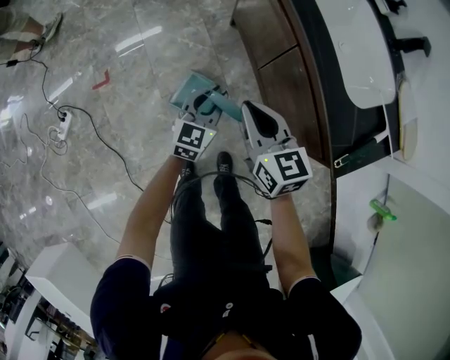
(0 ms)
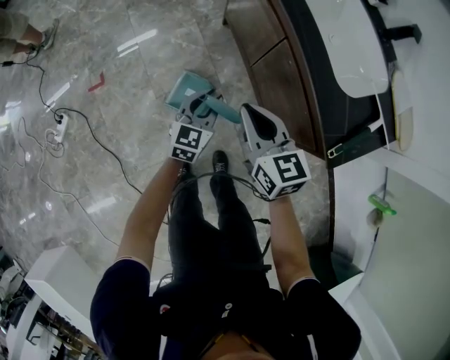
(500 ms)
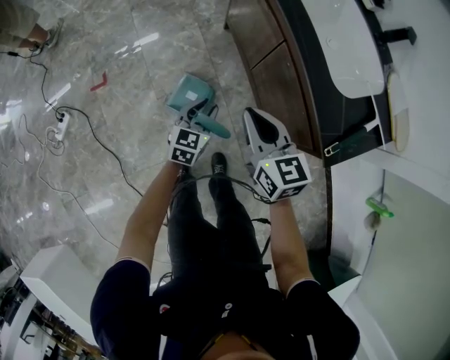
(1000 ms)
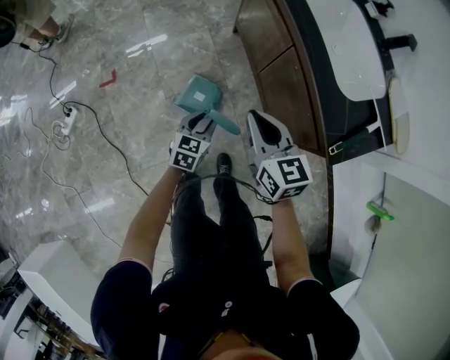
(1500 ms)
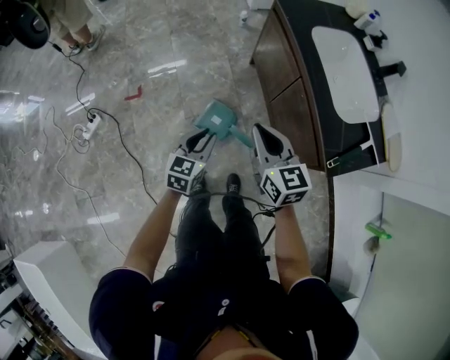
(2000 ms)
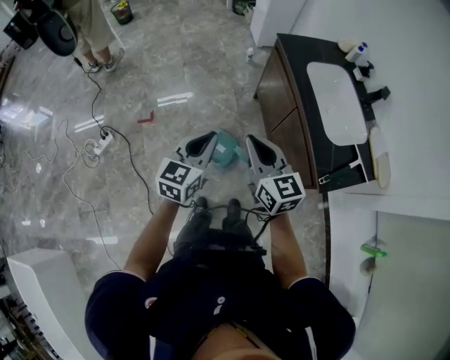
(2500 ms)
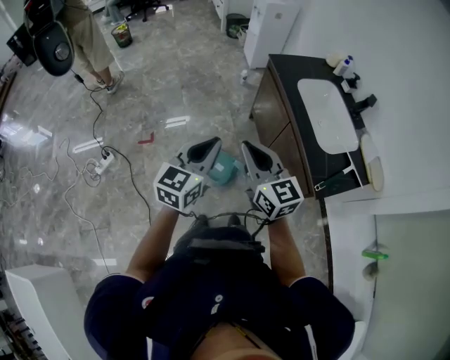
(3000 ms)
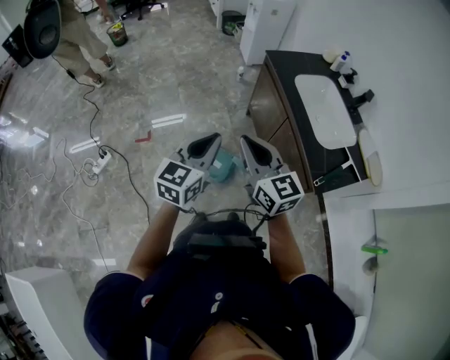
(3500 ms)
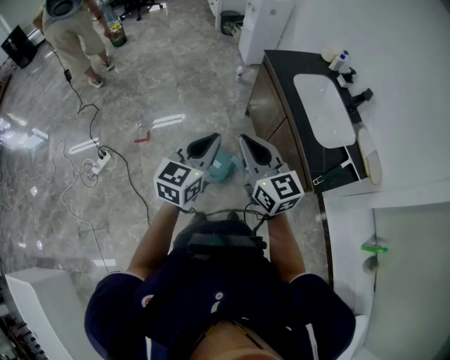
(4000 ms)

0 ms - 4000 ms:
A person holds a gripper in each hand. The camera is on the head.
0 ms - 2000 ms: The left gripper shifts some 20 cm backward, upward and to the left. Meanwhile the right gripper is displaced upward and backward by about 15 cm.
2000 ms - 4000 ms: The right gripper shifts approximately 15 cm upward; the left gripper heads upward, covering approximately 25 cm.

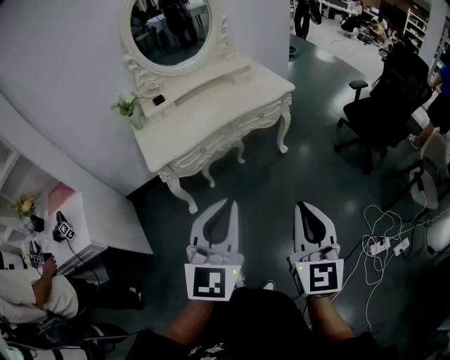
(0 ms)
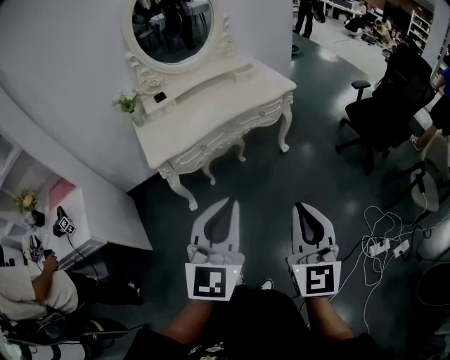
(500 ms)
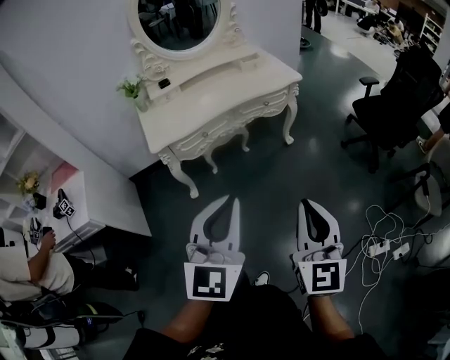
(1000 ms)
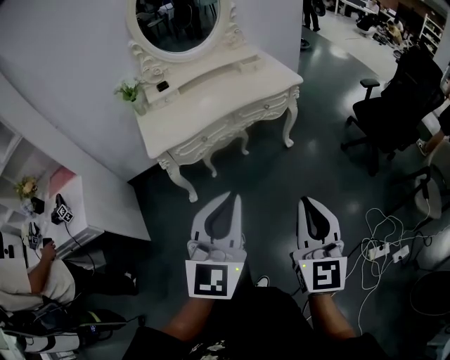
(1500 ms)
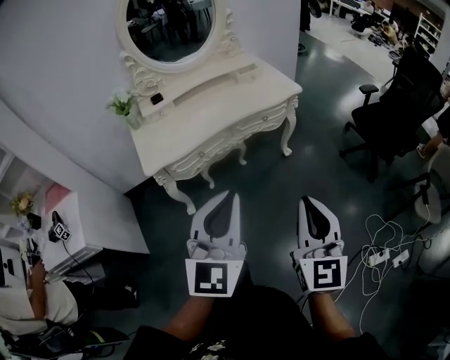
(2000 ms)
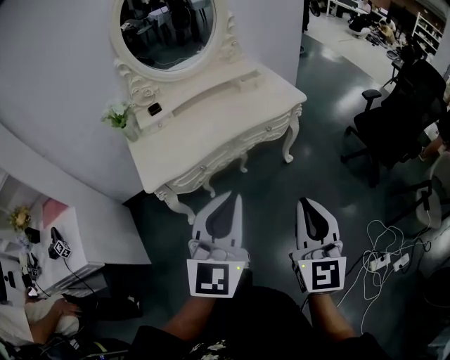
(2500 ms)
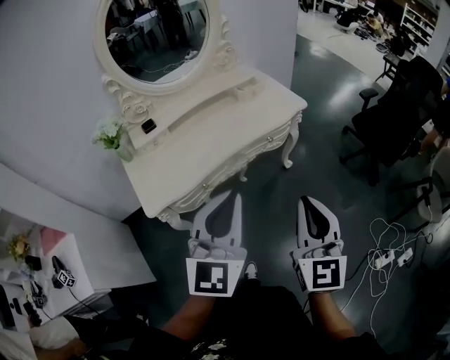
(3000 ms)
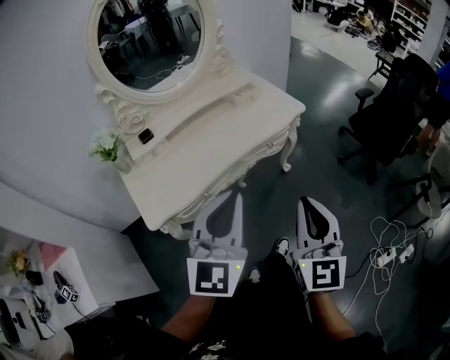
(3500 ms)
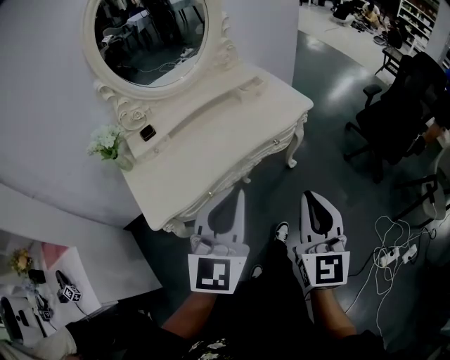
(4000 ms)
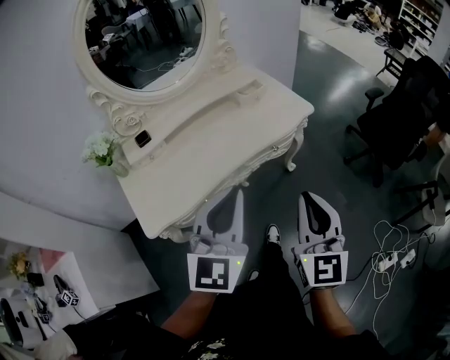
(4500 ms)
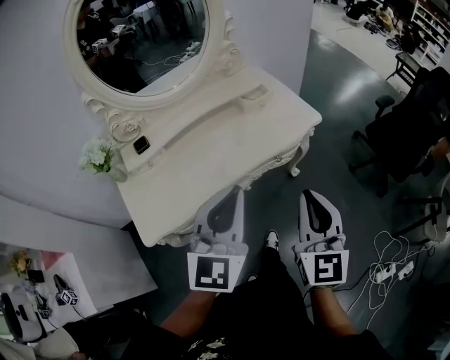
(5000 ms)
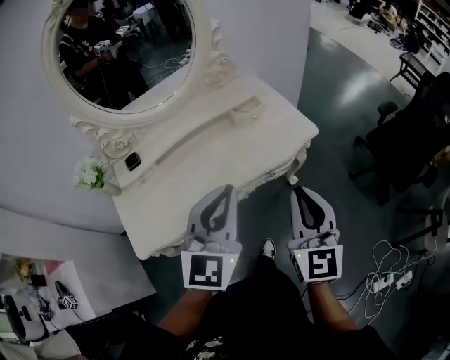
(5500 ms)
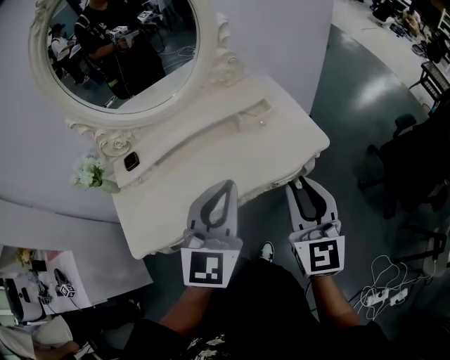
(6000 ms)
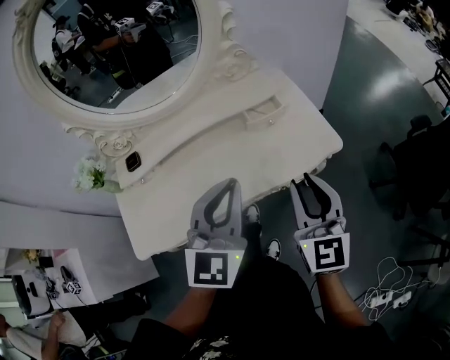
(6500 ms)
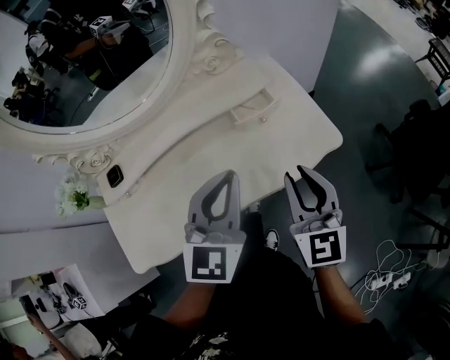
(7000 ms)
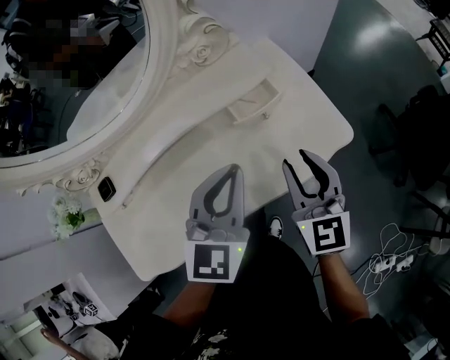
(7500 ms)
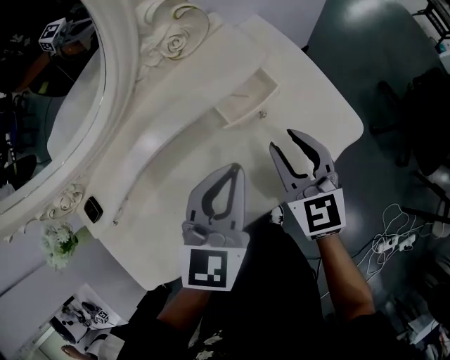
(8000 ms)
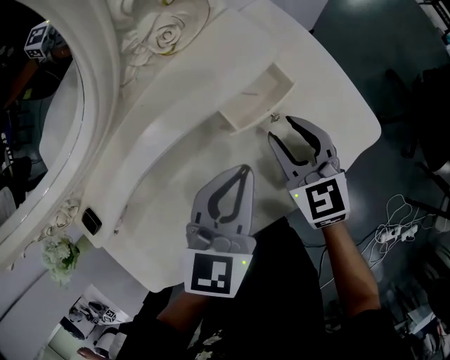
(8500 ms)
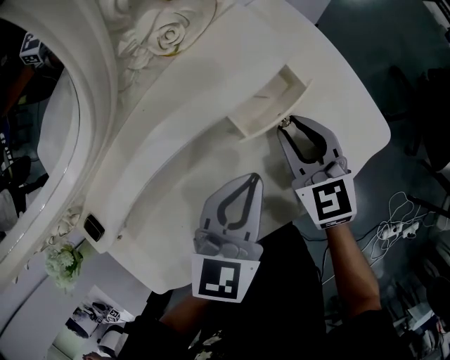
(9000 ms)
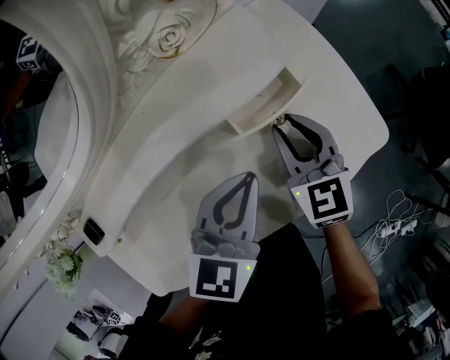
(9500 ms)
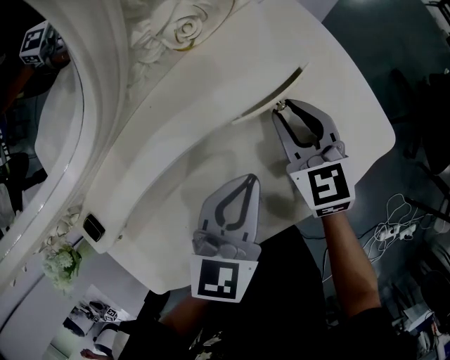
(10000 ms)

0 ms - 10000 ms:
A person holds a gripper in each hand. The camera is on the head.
0 ms - 2000 ms: Both grippers travel together forward, about 10 cm.
2000 ms - 4000 ms: The two grippers go about 20 cm forward and to the left.
4000 ms - 6000 ms: Both grippers travel together forward, roughly 25 cm.
6000 ms - 8000 ms: Both grippers move forward and downward, about 25 cm. The left gripper rotates some 20 degrees.
8000 ms - 10000 ms: The right gripper goes some 10 cm forward and downward, while the left gripper heads downward, covering about 5 cm.

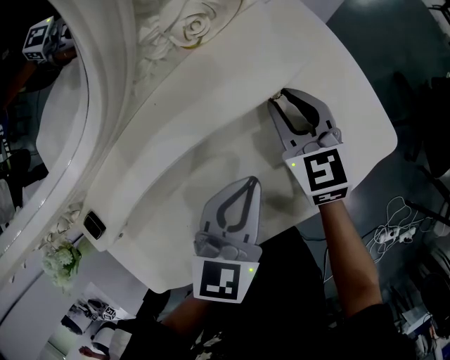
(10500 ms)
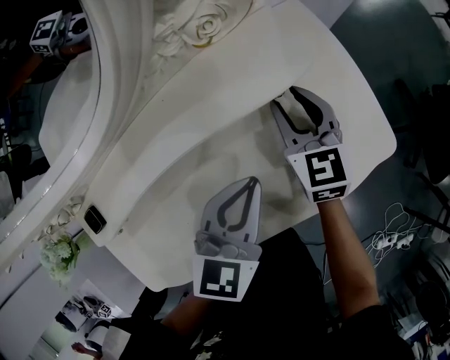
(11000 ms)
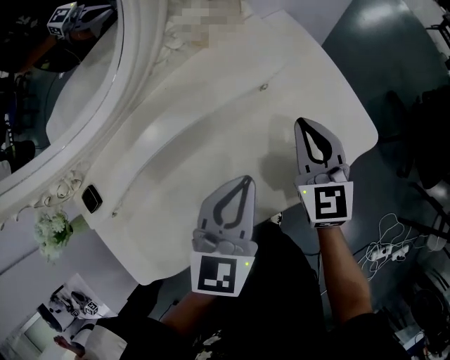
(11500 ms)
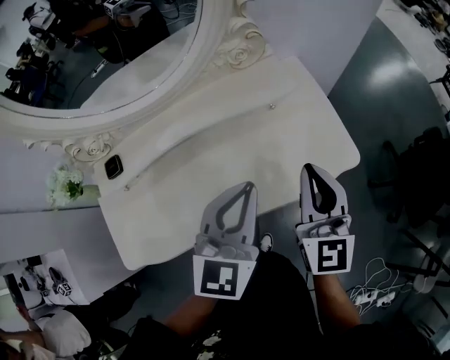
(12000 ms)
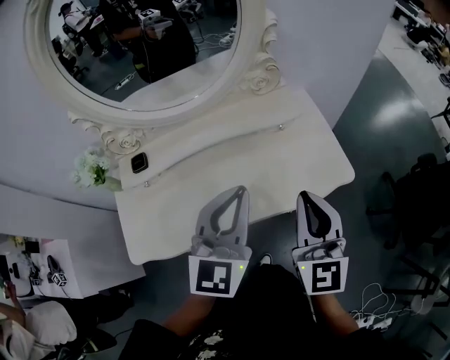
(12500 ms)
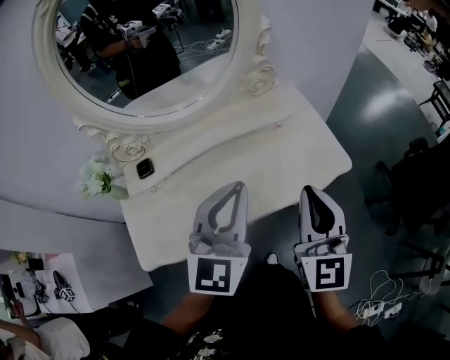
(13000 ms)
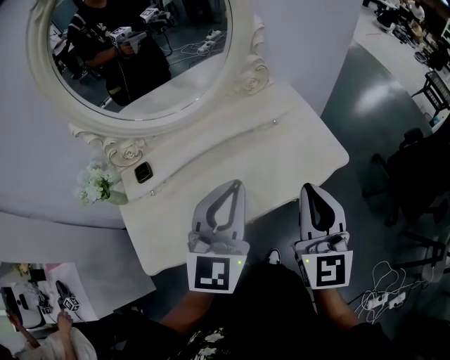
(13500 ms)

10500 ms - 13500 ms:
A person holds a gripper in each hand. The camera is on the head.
10500 ms - 12000 ms: The right gripper goes about 25 cm upward and backward, turns by approximately 20 degrees, and closes. Meanwhile the left gripper goes approximately 15 cm upward and backward, and turns by roughly 20 degrees.
12000 ms - 13500 ms: The left gripper is displaced to the left, upward and backward by some 15 cm. The right gripper heads backward, upward and to the left, covering approximately 15 cm.

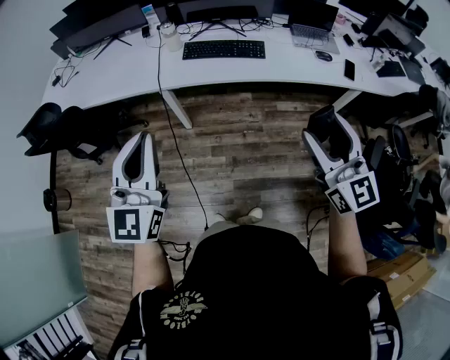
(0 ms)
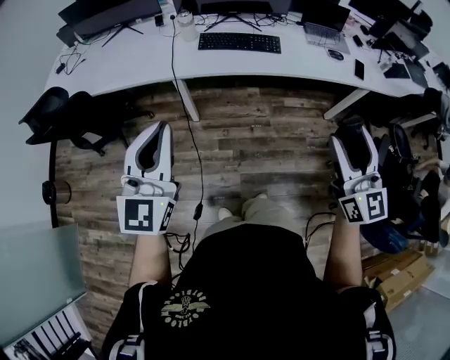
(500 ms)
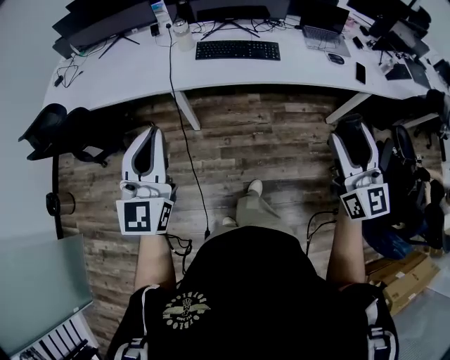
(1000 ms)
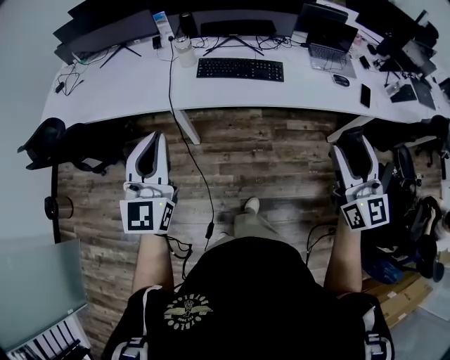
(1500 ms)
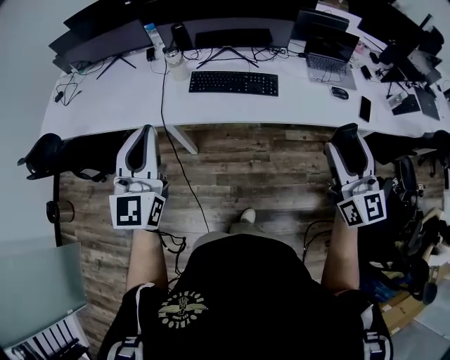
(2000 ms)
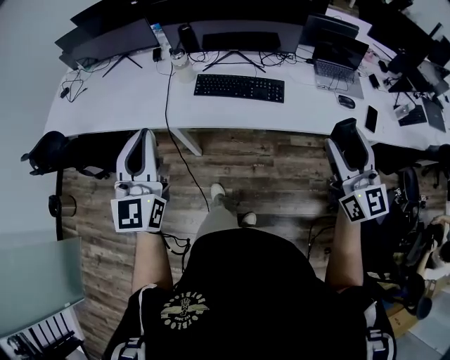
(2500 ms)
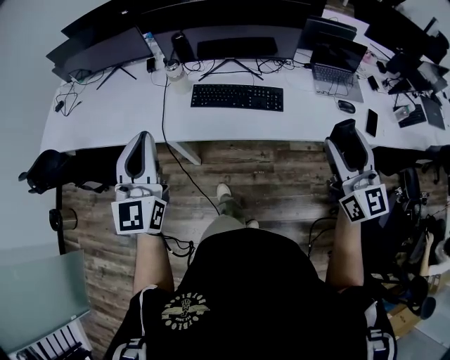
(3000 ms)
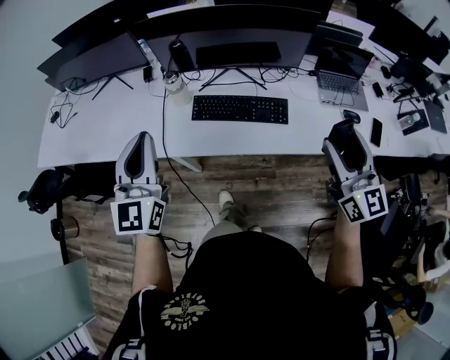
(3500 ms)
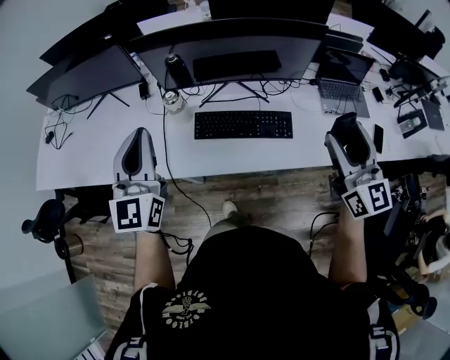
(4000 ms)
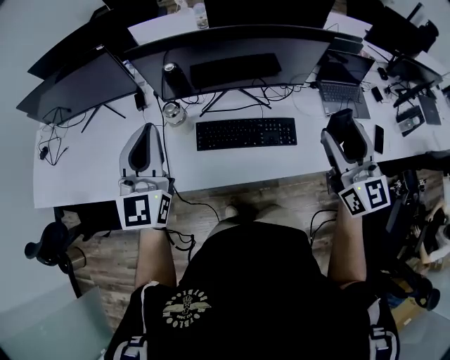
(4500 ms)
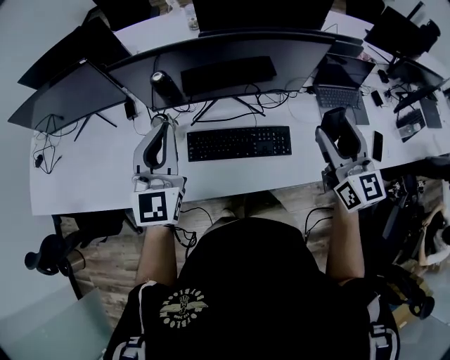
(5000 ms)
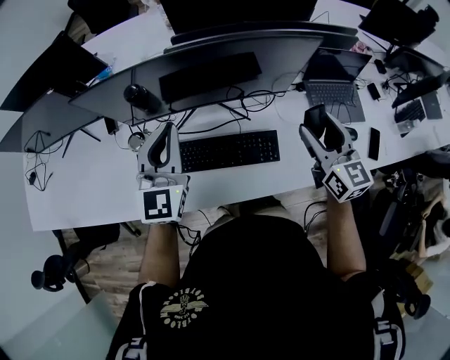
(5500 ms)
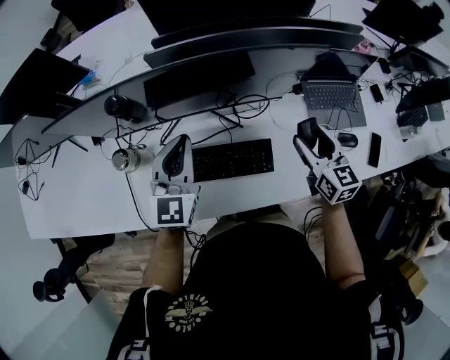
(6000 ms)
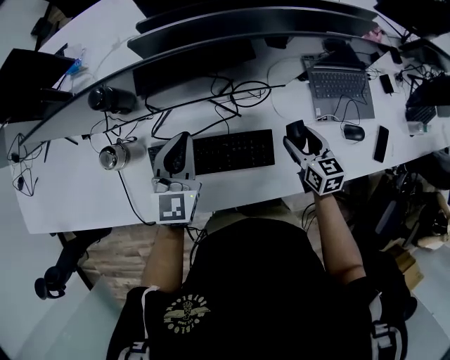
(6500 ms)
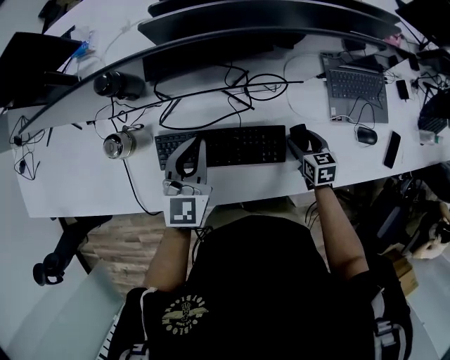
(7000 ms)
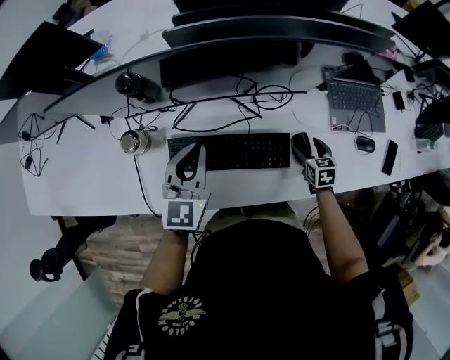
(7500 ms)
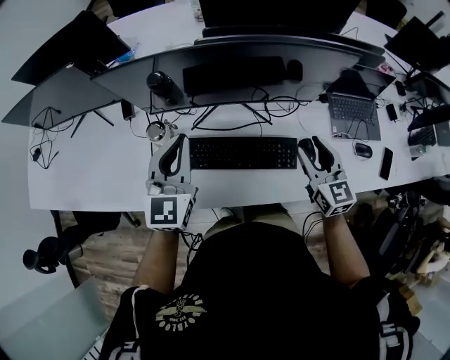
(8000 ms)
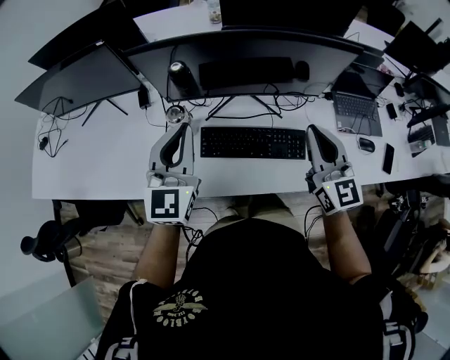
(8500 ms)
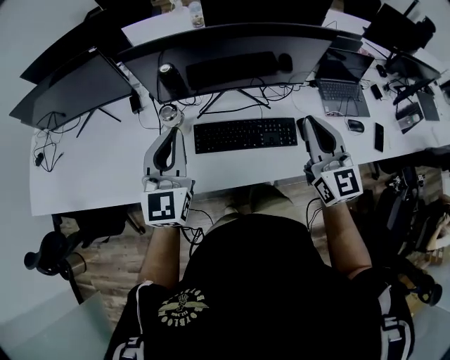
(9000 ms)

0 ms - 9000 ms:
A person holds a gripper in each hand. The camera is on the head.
0 ms - 2000 ms: Both grippers travel together forward, roughly 20 cm.
2000 ms - 4500 ms: Both grippers move forward, some 30 cm.
4500 ms - 7000 ms: The right gripper heads downward, covering approximately 50 cm, and angles its fingers downward, by approximately 50 degrees; the left gripper goes some 35 cm downward, to the right and forward, and turns by about 30 degrees.
7000 ms - 9000 ms: The right gripper moves upward and to the left, roughly 40 cm, points its fingers approximately 50 degrees further upward, and closes its fingers, while the left gripper is displaced upward, to the left and backward by some 30 cm, and changes its angle by approximately 20 degrees.
